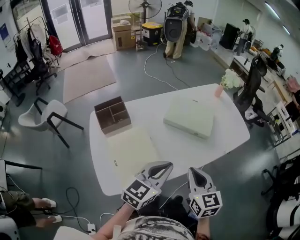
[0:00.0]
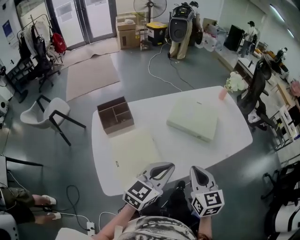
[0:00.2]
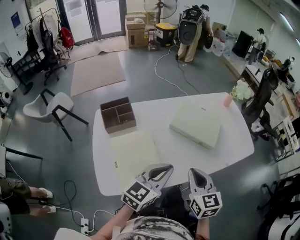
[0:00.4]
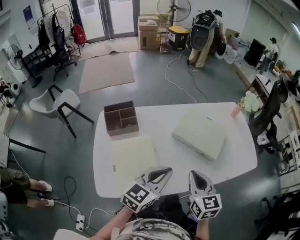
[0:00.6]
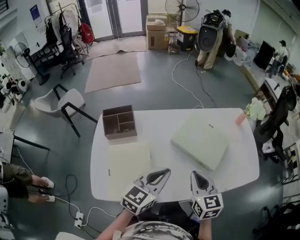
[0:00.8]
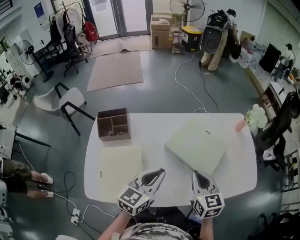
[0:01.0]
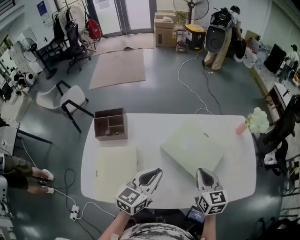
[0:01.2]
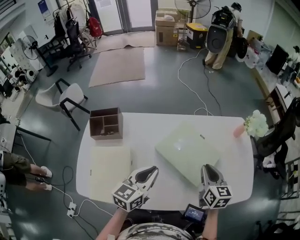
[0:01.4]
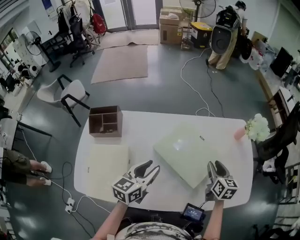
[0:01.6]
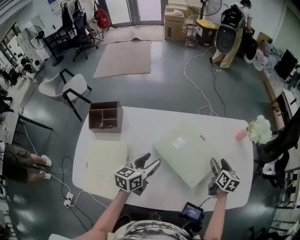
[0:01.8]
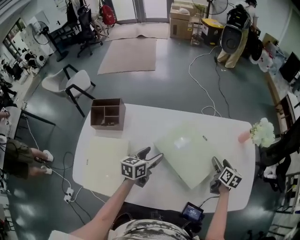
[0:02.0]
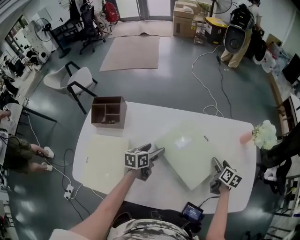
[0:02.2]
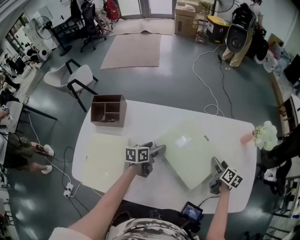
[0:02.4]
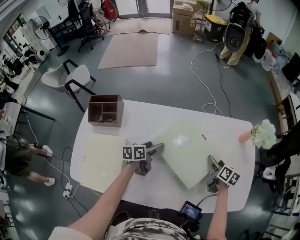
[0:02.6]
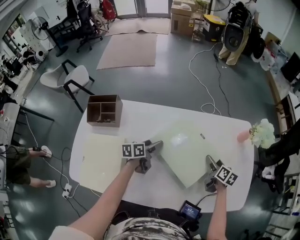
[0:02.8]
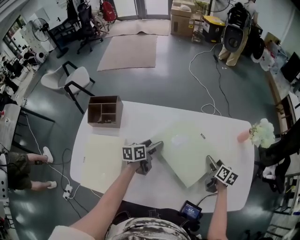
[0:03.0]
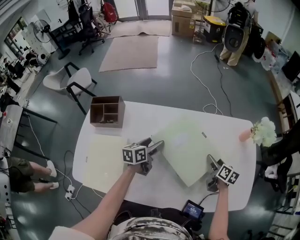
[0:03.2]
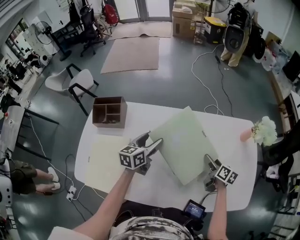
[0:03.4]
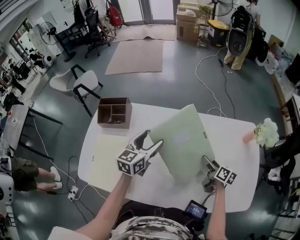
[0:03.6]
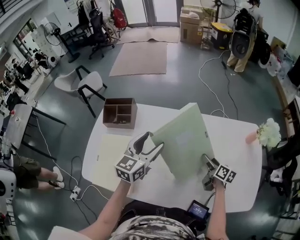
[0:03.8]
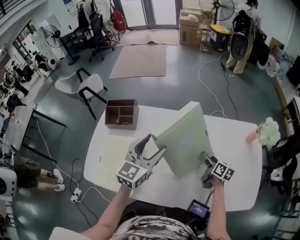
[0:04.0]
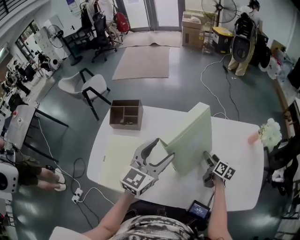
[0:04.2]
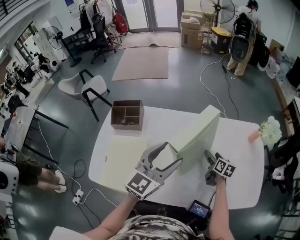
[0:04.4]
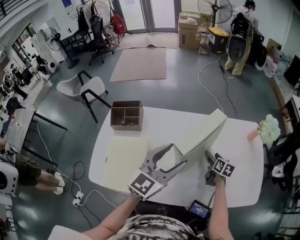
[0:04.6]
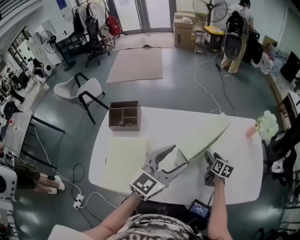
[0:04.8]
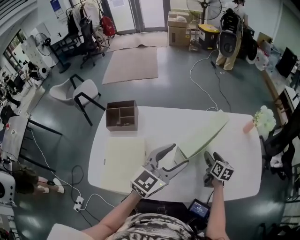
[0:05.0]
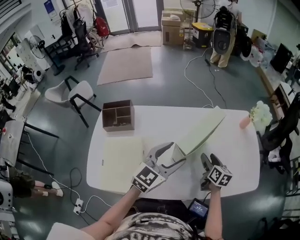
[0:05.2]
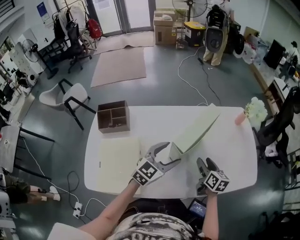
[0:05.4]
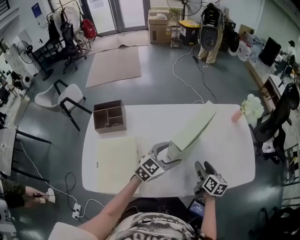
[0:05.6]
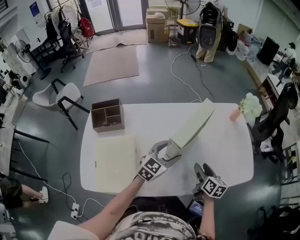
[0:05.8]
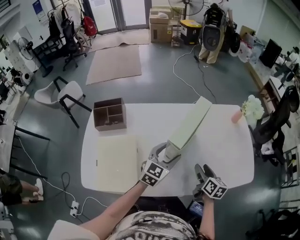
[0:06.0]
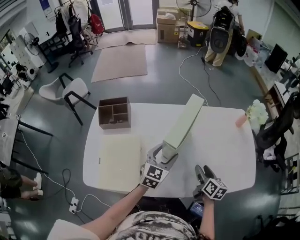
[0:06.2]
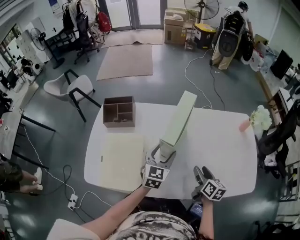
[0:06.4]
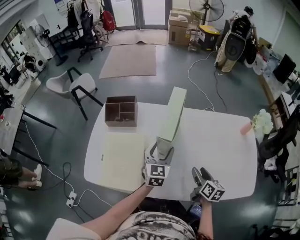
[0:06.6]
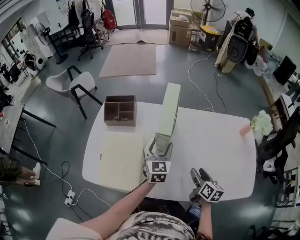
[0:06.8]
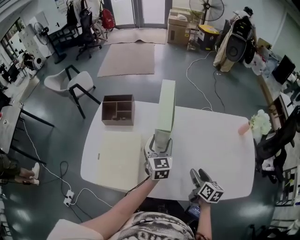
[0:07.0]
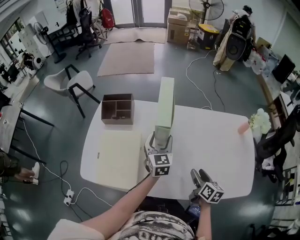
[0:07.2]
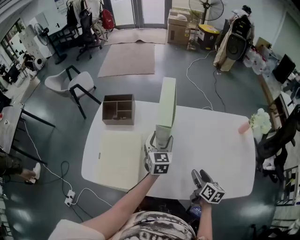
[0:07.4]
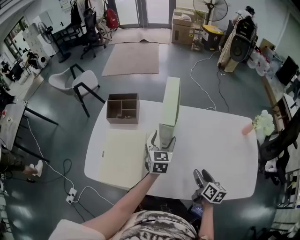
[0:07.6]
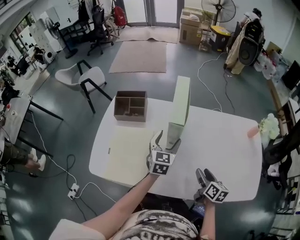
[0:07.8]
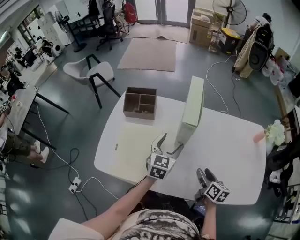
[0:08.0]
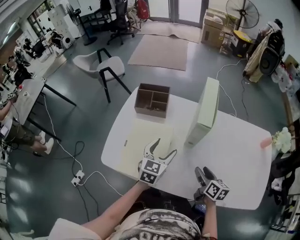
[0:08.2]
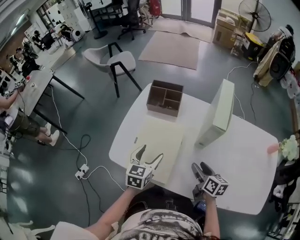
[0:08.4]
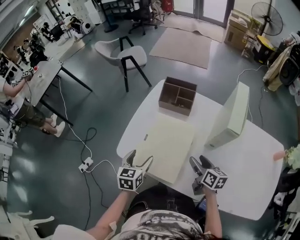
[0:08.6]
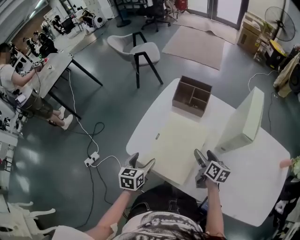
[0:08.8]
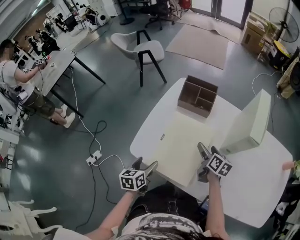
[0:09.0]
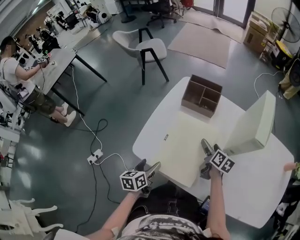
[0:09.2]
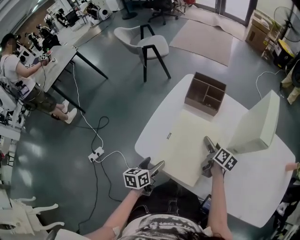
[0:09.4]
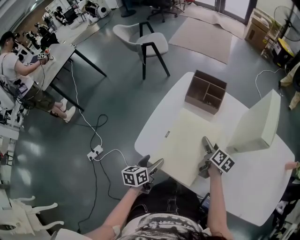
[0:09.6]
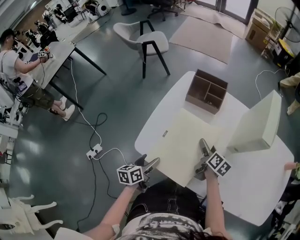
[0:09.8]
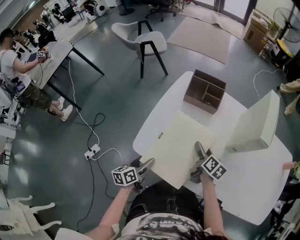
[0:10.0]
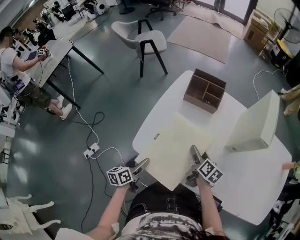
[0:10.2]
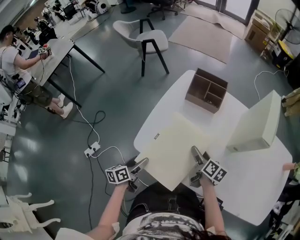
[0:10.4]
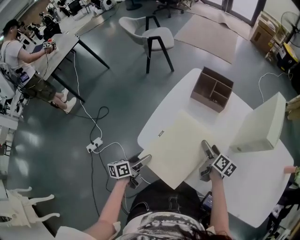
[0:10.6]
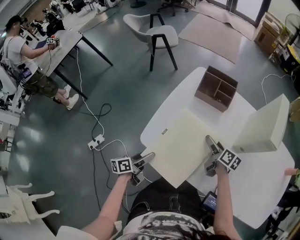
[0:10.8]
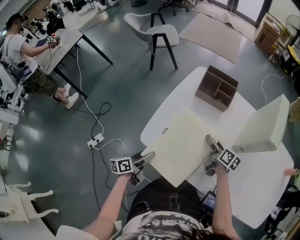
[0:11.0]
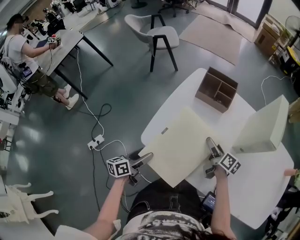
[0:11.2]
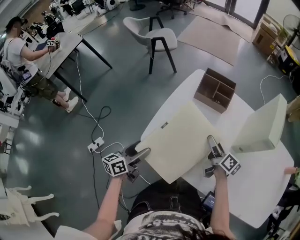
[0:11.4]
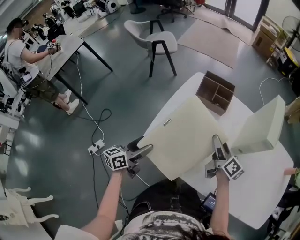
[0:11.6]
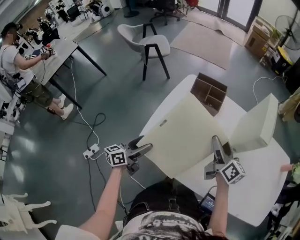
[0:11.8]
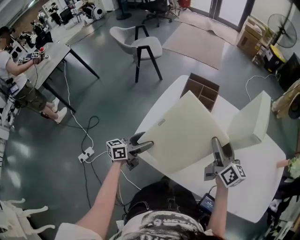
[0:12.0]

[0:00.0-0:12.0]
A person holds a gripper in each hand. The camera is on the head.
0:00.0 to 0:01.6: The left gripper moves forward and downward, roughly 25 cm, and turns by some 40 degrees. Meanwhile the right gripper goes some 40 cm forward and to the right, and opens.
0:01.6 to 0:03.0: The left gripper is displaced downward and forward by roughly 20 cm, changes its angle by some 30 degrees, and opens. The right gripper heads downward and forward, covering approximately 10 cm, changes its angle by roughly 20 degrees, and opens its fingers.
0:03.0 to 0:04.4: The left gripper travels upward and backward by approximately 30 cm, and twists roughly 50 degrees clockwise, seen from behind. The right gripper is displaced to the left by some 10 cm.
0:04.4 to 0:06.0: The left gripper travels downward by roughly 15 cm, while the right gripper travels backward by approximately 15 cm.
0:06.0 to 0:07.6: The left gripper changes place by roughly 10 cm, and swivels roughly 40 degrees.
0:07.6 to 0:09.0: The right gripper moves to the left and forward, about 35 cm, turns by approximately 20 degrees, and opens its fingers, while the left gripper shifts about 40 cm to the left and backward, and swivels about 40 degrees.
0:09.0 to 0:10.4: Both grippers move to the left, about 5 cm. The left gripper changes its angle by about 30 degrees.
0:10.4 to 0:12.0: The right gripper goes roughly 20 cm upward, and changes its angle by some 40 degrees, while the left gripper shifts roughly 15 cm forward and upward, and rotates approximately 40 degrees.

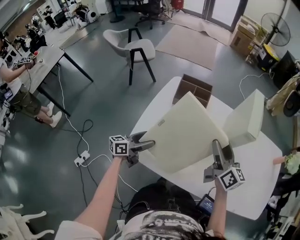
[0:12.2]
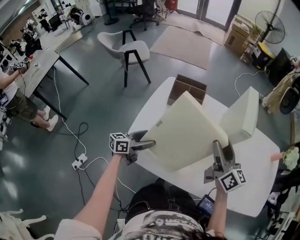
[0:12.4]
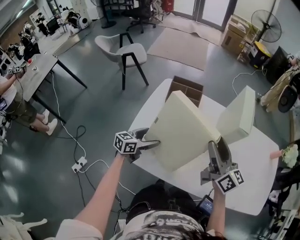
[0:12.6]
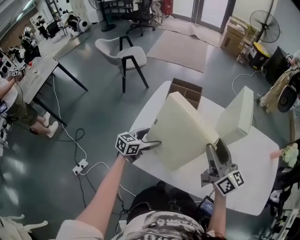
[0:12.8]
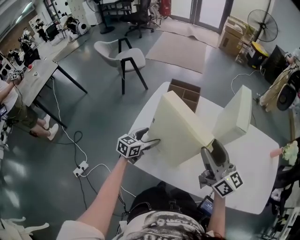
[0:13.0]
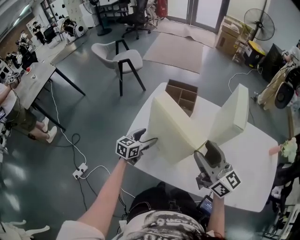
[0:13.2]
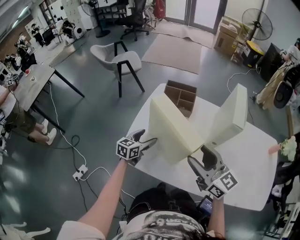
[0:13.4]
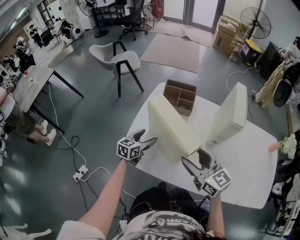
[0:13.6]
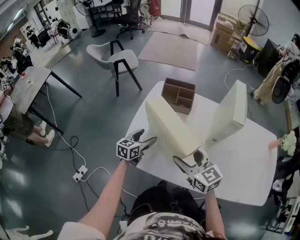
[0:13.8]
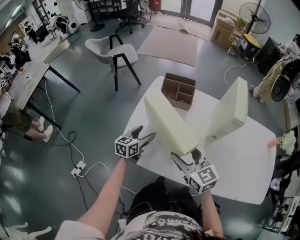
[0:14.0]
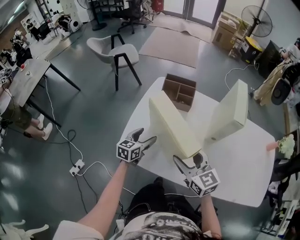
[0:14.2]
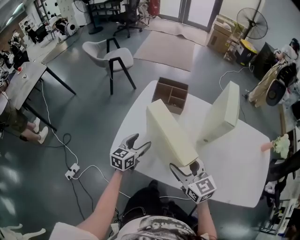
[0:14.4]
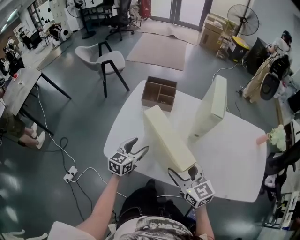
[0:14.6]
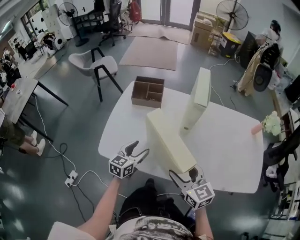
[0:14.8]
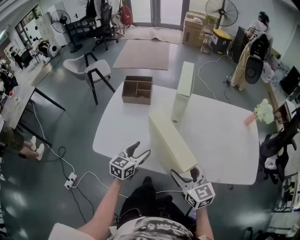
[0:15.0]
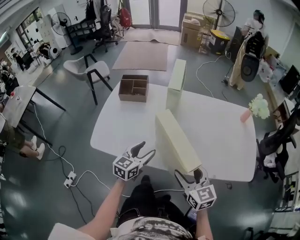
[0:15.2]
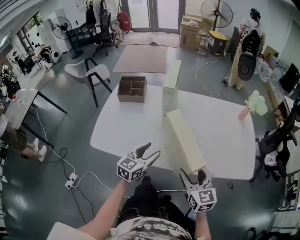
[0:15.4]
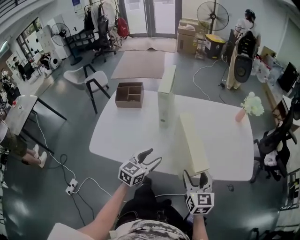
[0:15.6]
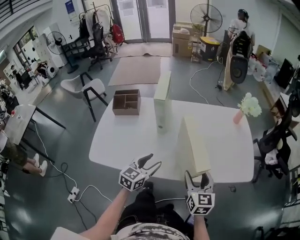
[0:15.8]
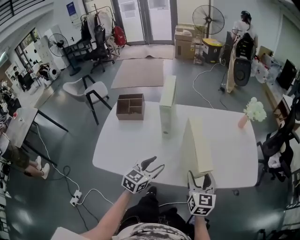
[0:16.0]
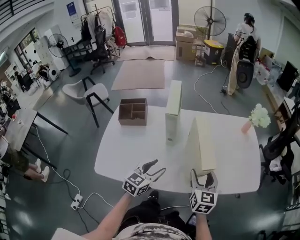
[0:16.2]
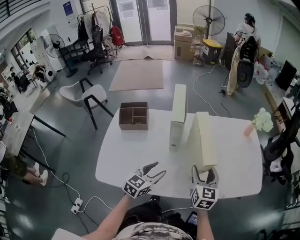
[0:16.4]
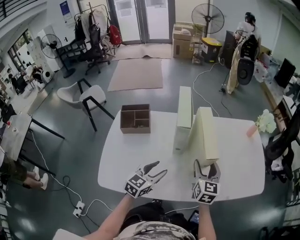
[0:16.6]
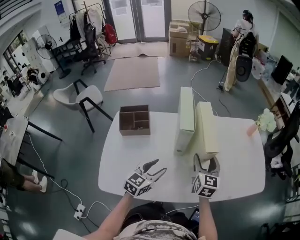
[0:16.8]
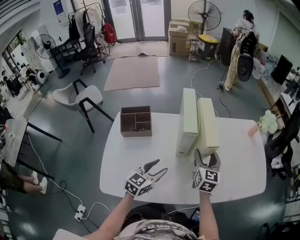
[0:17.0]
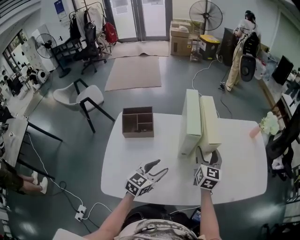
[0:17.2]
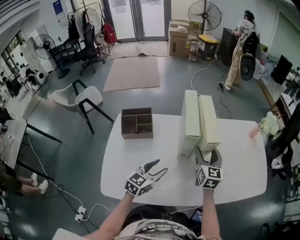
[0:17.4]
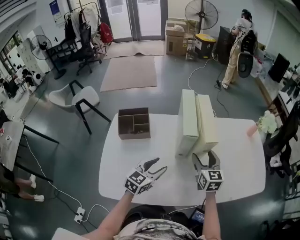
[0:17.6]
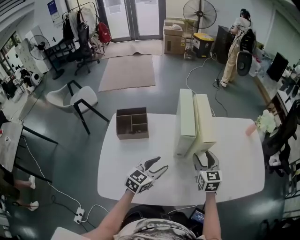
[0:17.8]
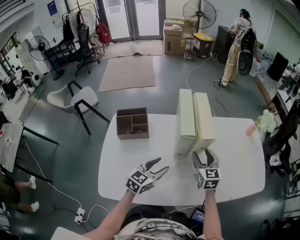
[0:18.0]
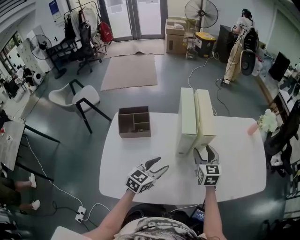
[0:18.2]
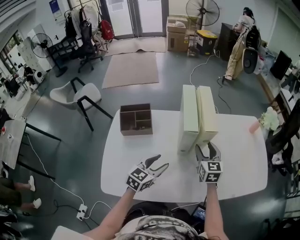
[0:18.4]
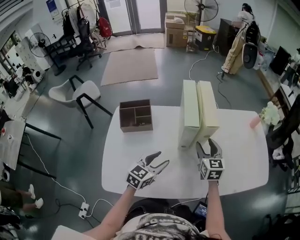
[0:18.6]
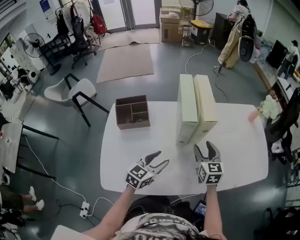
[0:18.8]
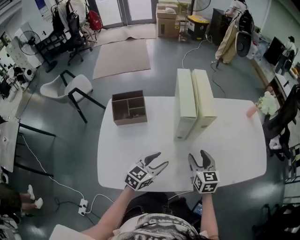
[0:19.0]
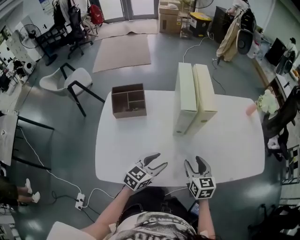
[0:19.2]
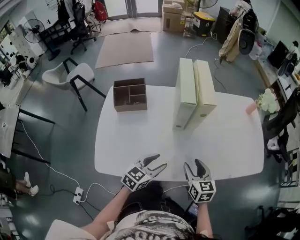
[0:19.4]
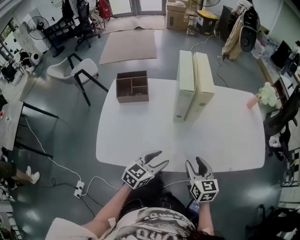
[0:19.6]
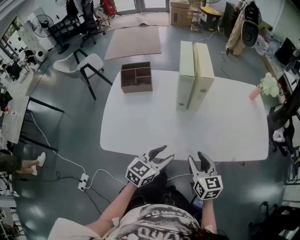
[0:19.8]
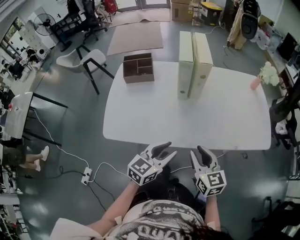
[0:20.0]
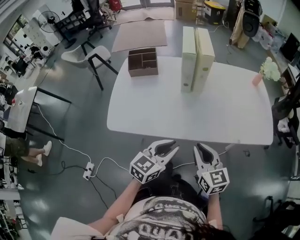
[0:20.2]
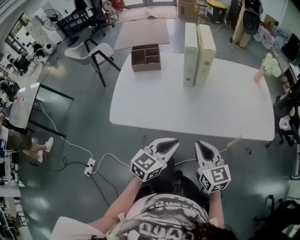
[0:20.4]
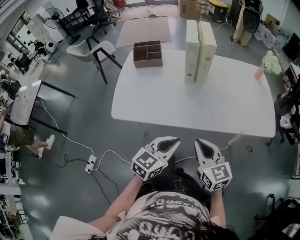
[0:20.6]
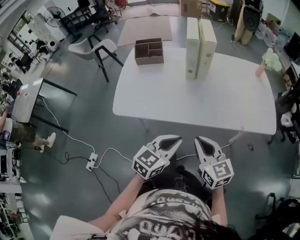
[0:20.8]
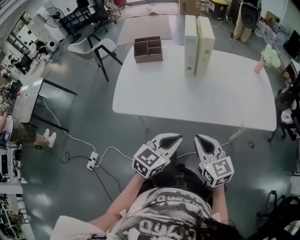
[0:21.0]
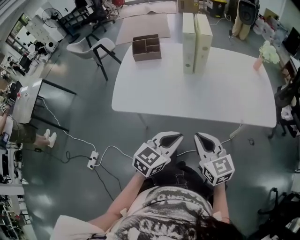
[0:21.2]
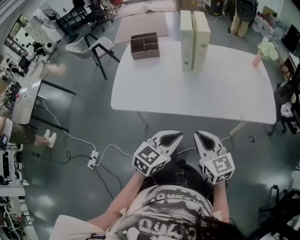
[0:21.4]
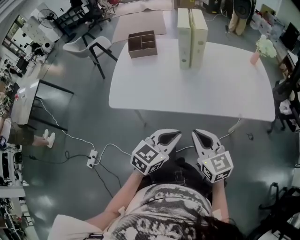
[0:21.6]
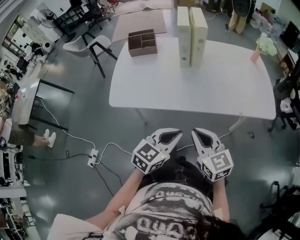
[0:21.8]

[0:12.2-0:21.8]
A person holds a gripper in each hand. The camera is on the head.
0:12.2 to 0:13.8: The left gripper moves some 5 cm, and rotates some 30 degrees. Meanwhile the right gripper moves to the left and backward, approximately 15 cm, and changes its angle by approximately 40 degrees.
0:13.8 to 0:15.4: The two grippers go about 35 cm to the right and backward. The right gripper changes its angle by about 30 degrees.
0:15.4 to 0:17.0: The left gripper moves to the left and forward, about 15 cm, while the right gripper heads forward and to the left, covering some 25 cm, and turns by approximately 30 degrees.
0:17.0 to 0:18.6: The grippers stay close to where they were, moving slightly.
0:18.6 to 0:20.2: The left gripper moves backward and to the right, approximately 25 cm. Meanwhile the right gripper goes some 35 cm backward, and closes up.
0:20.2 to 0:21.8: Both grippers travel together backward, about 10 cm.

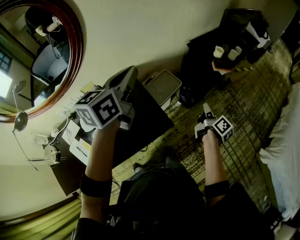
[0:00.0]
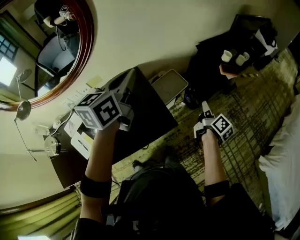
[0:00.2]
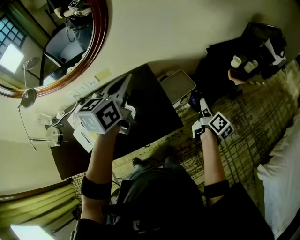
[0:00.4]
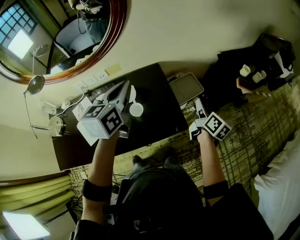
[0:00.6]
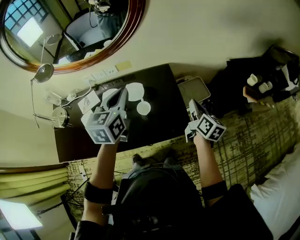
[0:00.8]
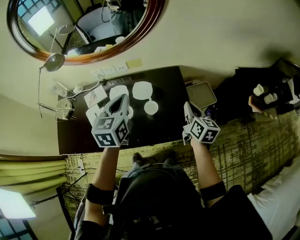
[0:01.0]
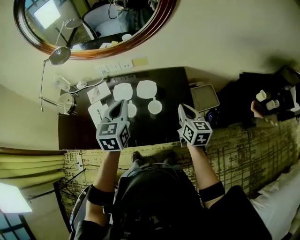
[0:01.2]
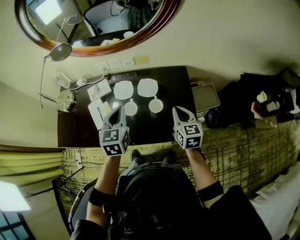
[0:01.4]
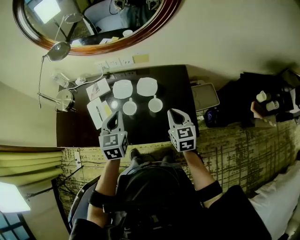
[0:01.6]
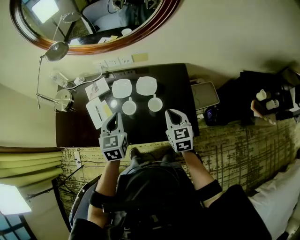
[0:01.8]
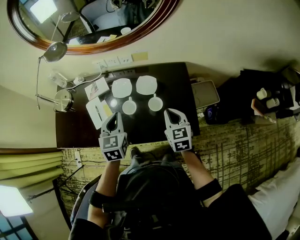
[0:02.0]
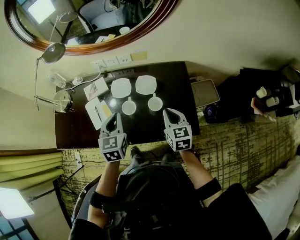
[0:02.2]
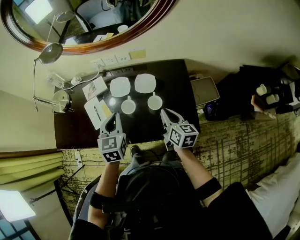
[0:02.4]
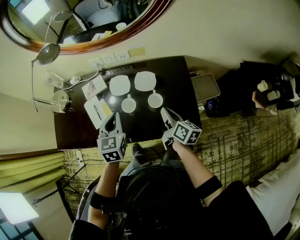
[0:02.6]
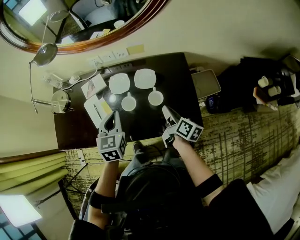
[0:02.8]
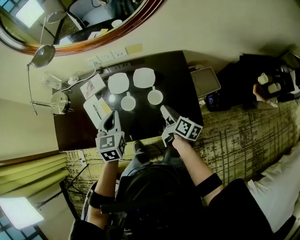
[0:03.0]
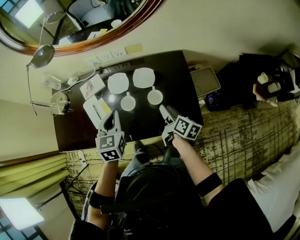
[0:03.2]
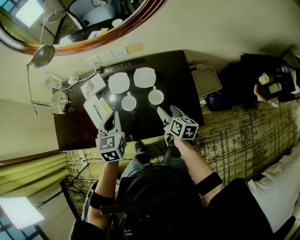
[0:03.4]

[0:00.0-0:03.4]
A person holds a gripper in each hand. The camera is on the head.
0:00.0 to 0:01.6: The left gripper moves some 40 cm, and changes its angle by some 60 degrees. Meanwhile the right gripper ends up roughly 40 cm from where it was, and rotates around the line of its fingers by about 70 degrees, counterclockwise from behind.
0:01.6 to 0:03.4: The right gripper travels downward by about 10 cm, rotates some 40 degrees, and opens up.
